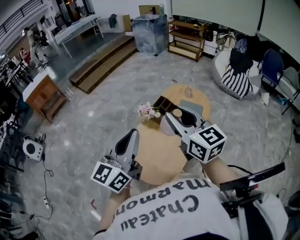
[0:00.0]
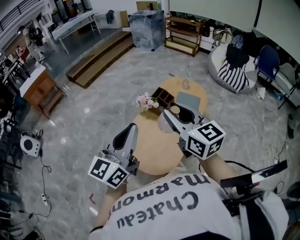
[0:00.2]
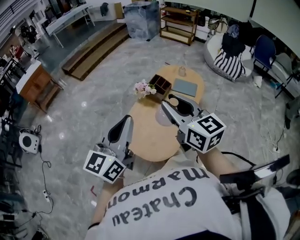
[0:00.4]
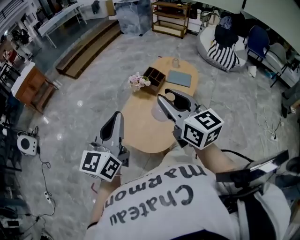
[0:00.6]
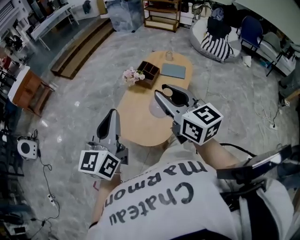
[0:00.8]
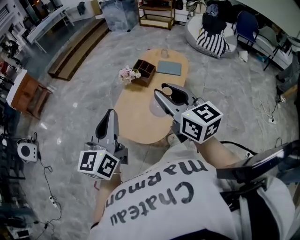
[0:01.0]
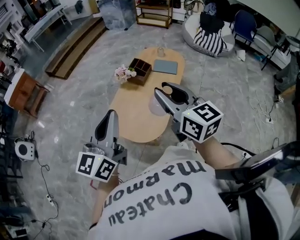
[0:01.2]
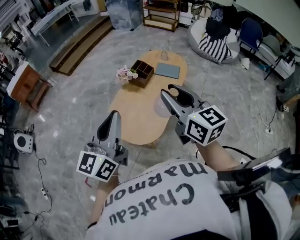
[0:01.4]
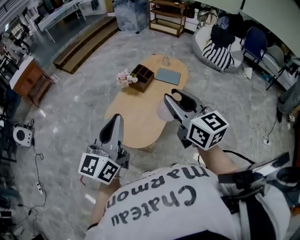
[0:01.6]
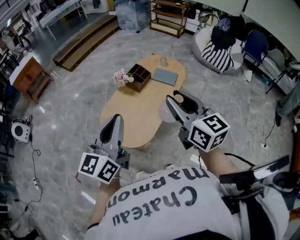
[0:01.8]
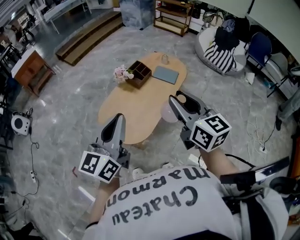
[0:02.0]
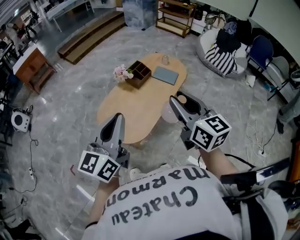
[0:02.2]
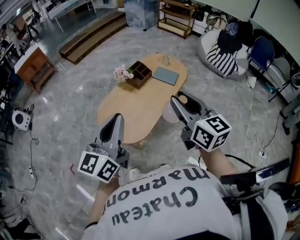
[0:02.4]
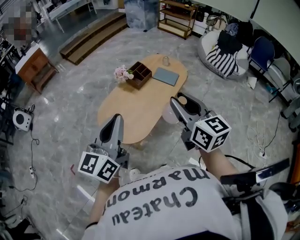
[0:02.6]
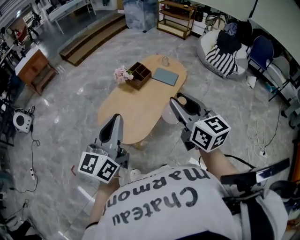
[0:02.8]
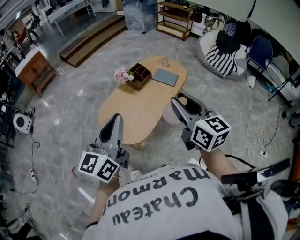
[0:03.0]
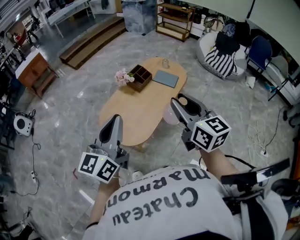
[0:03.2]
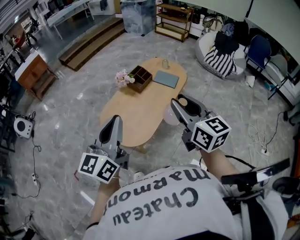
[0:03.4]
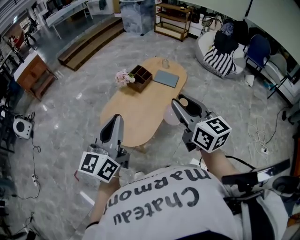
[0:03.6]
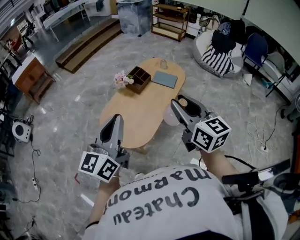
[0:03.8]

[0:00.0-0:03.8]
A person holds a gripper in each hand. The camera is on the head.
0:00.0 to 0:01.2: Both grippers move backward, approximately 15 cm.
0:01.2 to 0:02.6: The two grippers go some 15 cm to the right.
0:02.6 to 0:03.8: The grippers make only small movements.

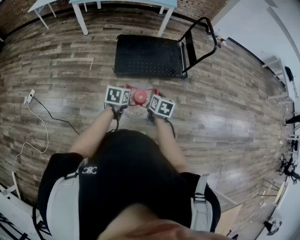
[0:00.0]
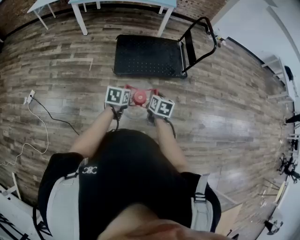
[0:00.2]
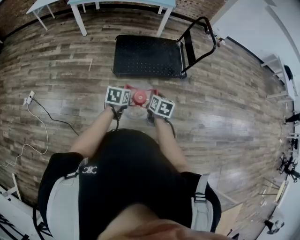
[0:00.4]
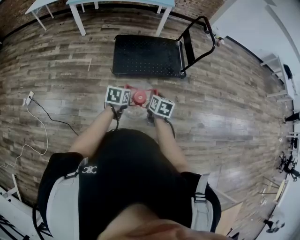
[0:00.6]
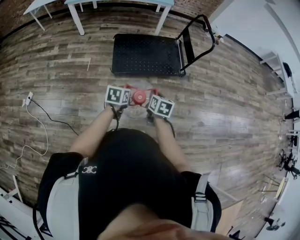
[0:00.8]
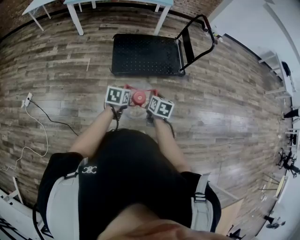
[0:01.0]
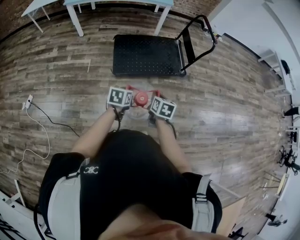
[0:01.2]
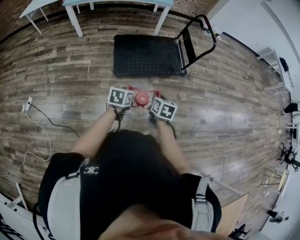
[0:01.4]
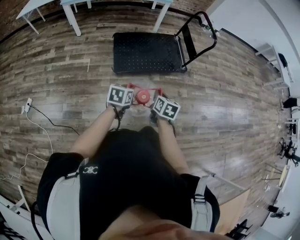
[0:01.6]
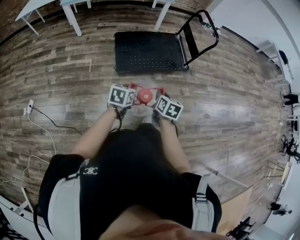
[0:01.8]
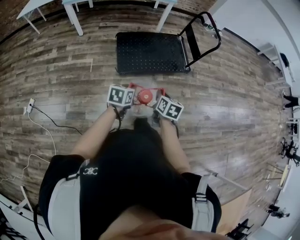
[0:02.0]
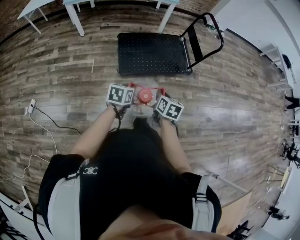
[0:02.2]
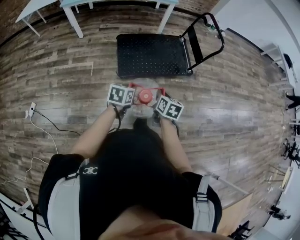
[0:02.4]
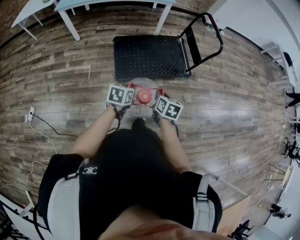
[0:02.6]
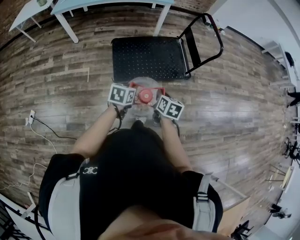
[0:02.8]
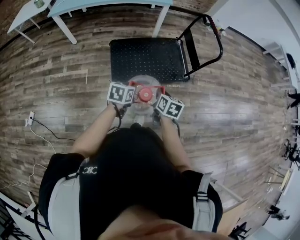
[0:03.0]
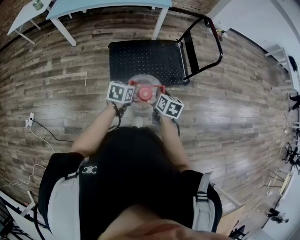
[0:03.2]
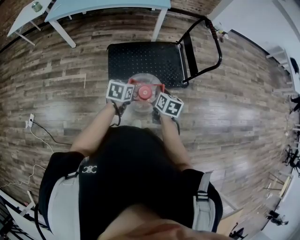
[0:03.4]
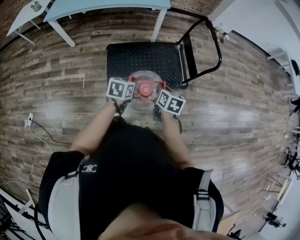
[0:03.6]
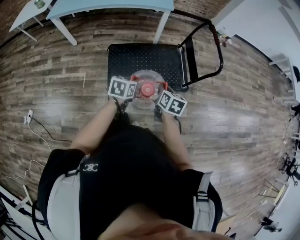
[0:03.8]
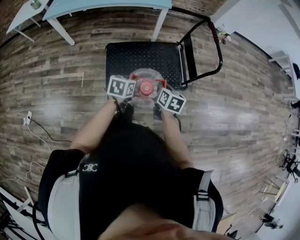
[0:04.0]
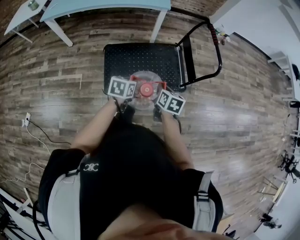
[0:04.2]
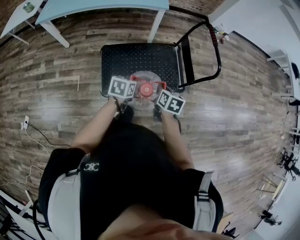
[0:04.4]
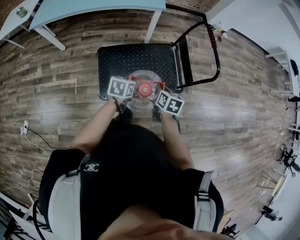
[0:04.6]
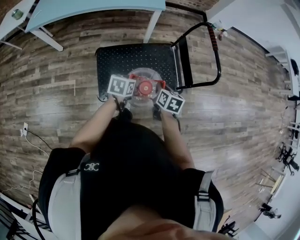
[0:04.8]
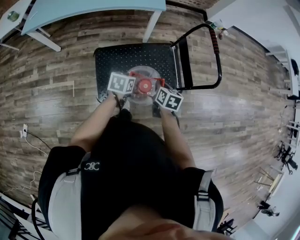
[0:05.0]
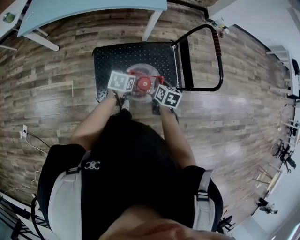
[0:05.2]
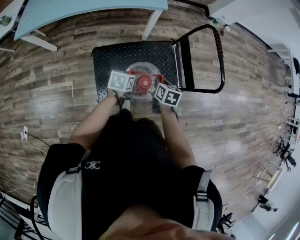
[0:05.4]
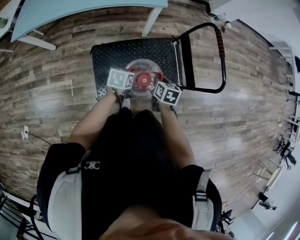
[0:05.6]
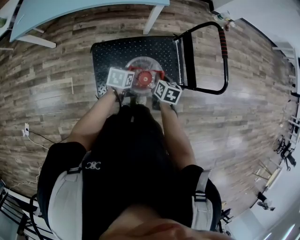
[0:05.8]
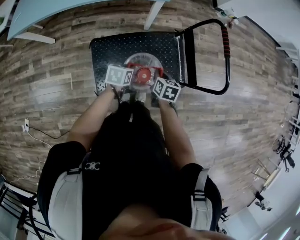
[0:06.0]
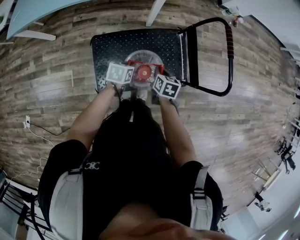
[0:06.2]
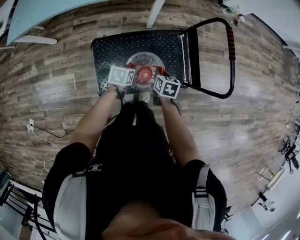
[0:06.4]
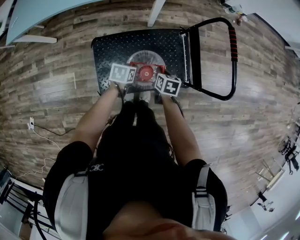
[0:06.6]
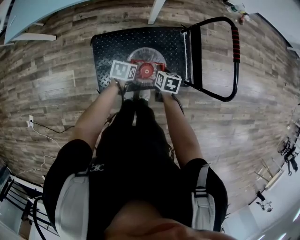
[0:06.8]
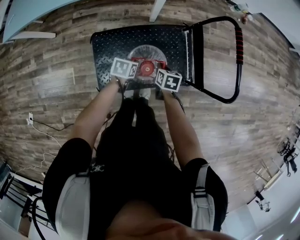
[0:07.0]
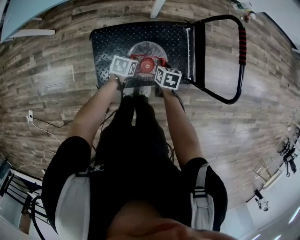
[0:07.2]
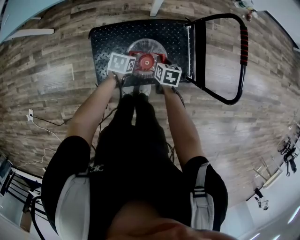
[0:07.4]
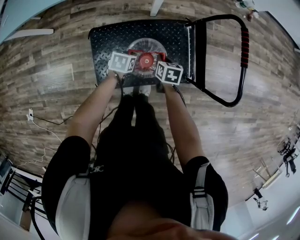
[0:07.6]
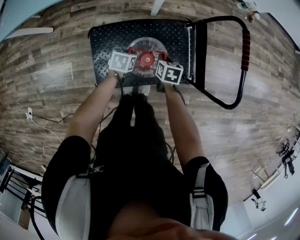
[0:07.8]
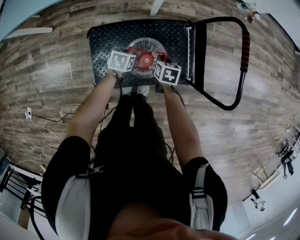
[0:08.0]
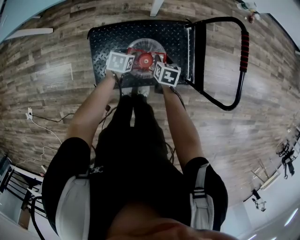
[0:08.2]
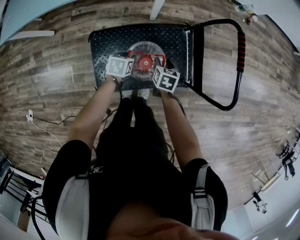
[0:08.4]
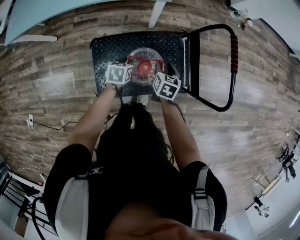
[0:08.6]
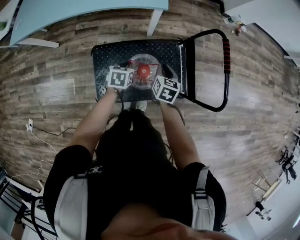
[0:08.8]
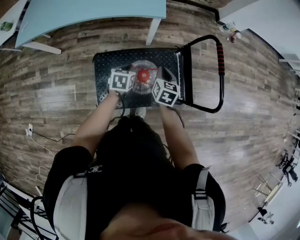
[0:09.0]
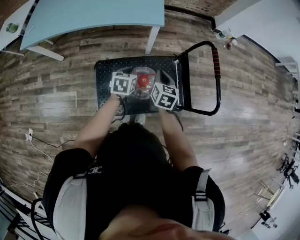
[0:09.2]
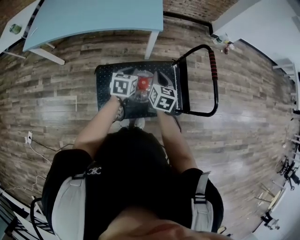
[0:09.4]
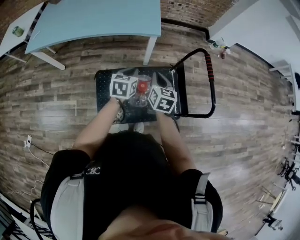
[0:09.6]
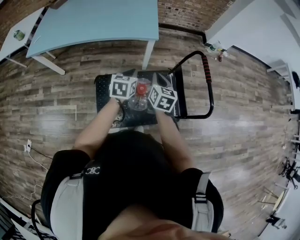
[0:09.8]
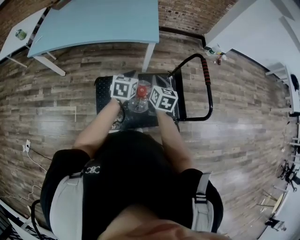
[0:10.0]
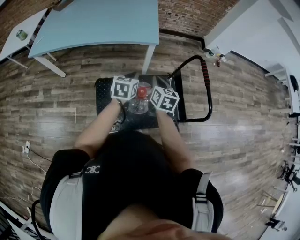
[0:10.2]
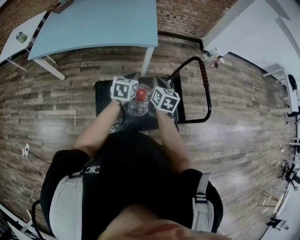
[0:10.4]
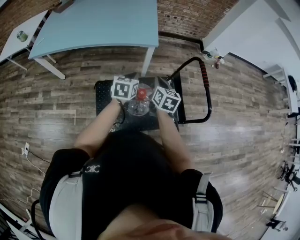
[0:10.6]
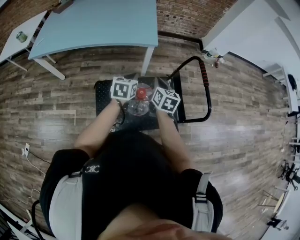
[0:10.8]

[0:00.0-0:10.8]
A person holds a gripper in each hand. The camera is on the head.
0:00.0 to 0:01.6: The grippers move only a little.
0:01.6 to 0:03.0: Both grippers move forward, approximately 20 cm.
0:03.0 to 0:04.6: The grippers both shift forward by some 20 cm.
0:04.6 to 0:06.2: The grippers both shift forward and downward by some 20 cm.
0:06.2 to 0:07.8: The grippers both shift downward and forward by about 10 cm.
0:07.8 to 0:09.2: Both grippers travel together upward, approximately 20 cm. The right gripper rotates about 30 degrees, and opens, then closes once more, while the left gripper rotates approximately 20 degrees, and opens, then closes once more.
0:09.2 to 0:10.8: Both grippers move upward, approximately 10 cm.

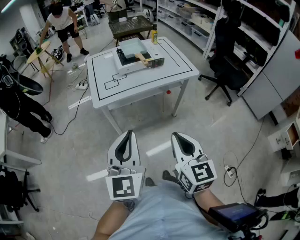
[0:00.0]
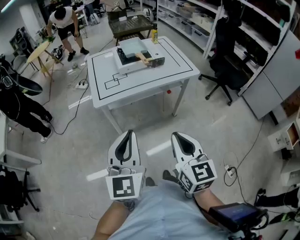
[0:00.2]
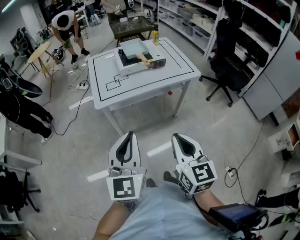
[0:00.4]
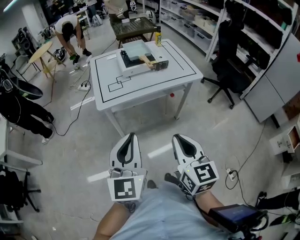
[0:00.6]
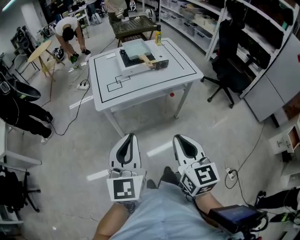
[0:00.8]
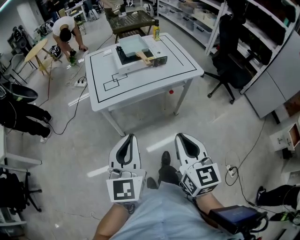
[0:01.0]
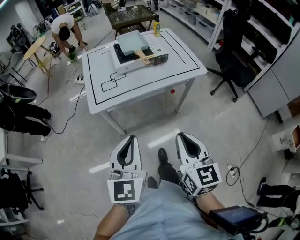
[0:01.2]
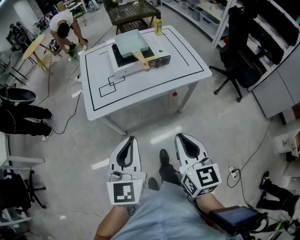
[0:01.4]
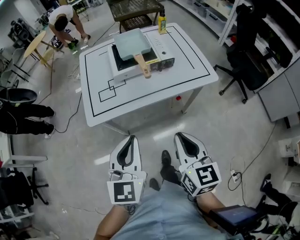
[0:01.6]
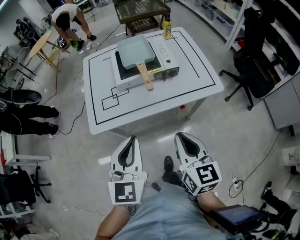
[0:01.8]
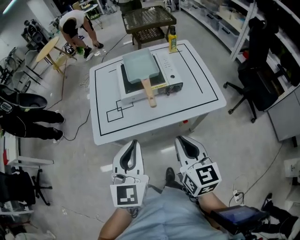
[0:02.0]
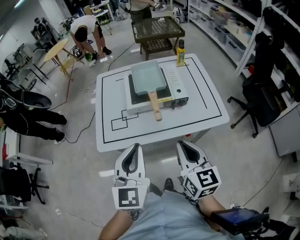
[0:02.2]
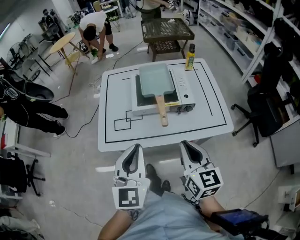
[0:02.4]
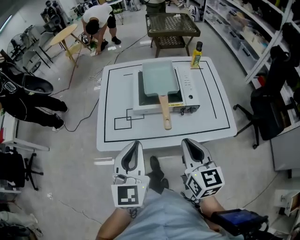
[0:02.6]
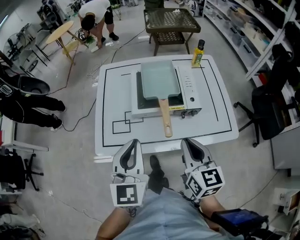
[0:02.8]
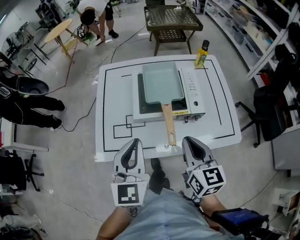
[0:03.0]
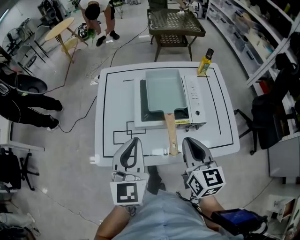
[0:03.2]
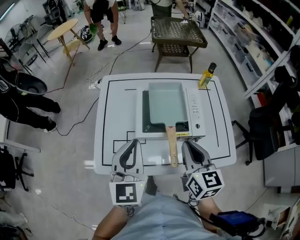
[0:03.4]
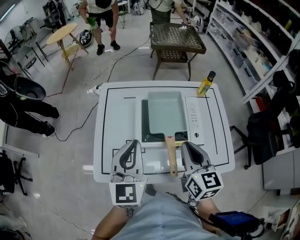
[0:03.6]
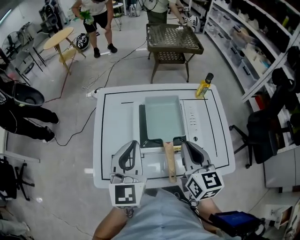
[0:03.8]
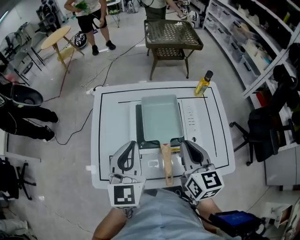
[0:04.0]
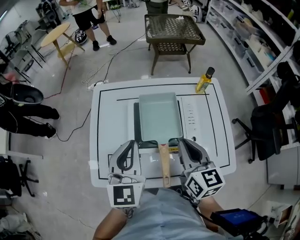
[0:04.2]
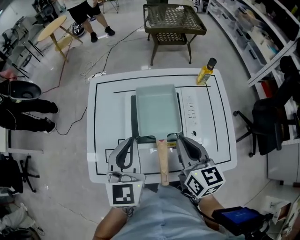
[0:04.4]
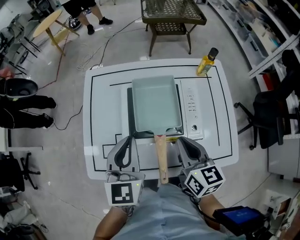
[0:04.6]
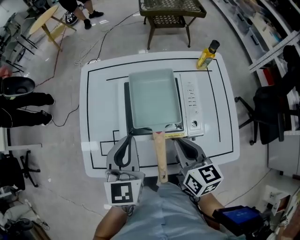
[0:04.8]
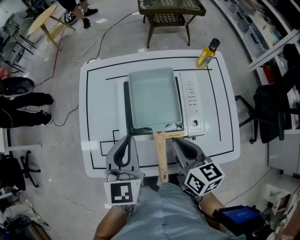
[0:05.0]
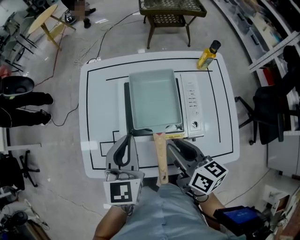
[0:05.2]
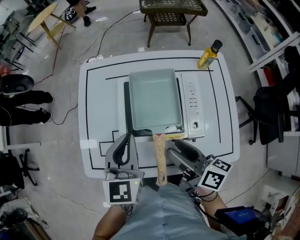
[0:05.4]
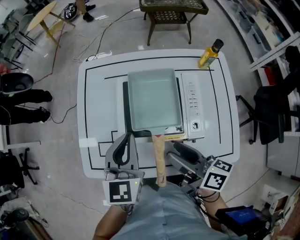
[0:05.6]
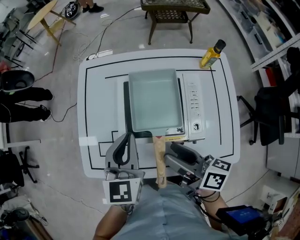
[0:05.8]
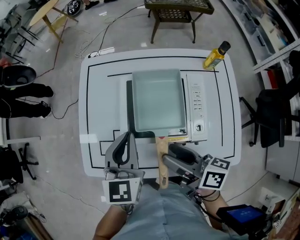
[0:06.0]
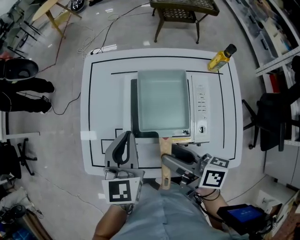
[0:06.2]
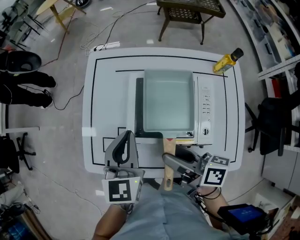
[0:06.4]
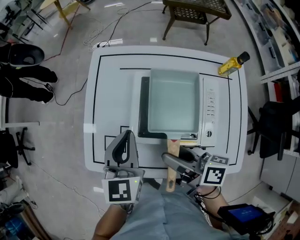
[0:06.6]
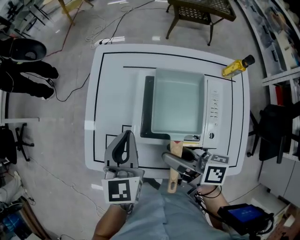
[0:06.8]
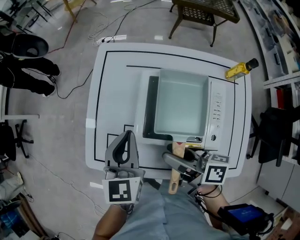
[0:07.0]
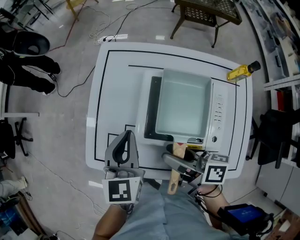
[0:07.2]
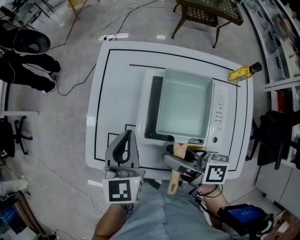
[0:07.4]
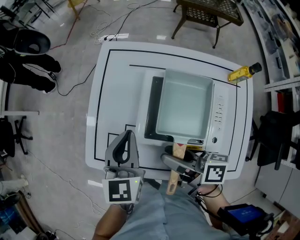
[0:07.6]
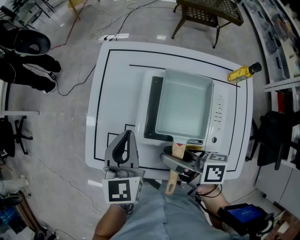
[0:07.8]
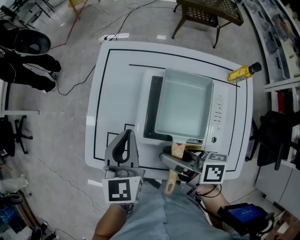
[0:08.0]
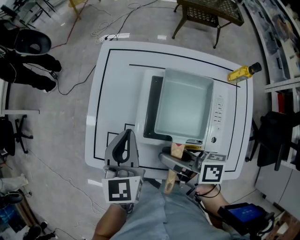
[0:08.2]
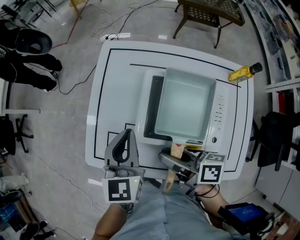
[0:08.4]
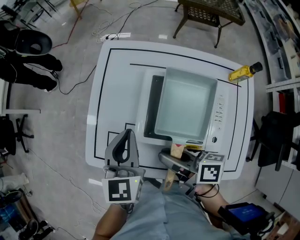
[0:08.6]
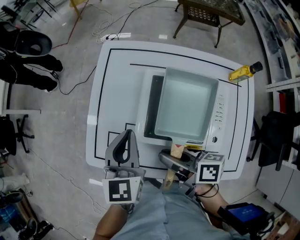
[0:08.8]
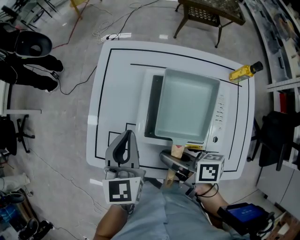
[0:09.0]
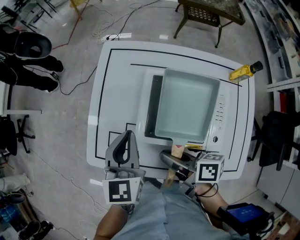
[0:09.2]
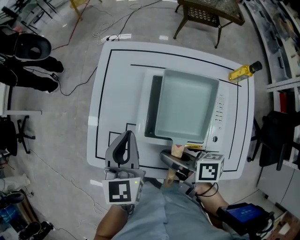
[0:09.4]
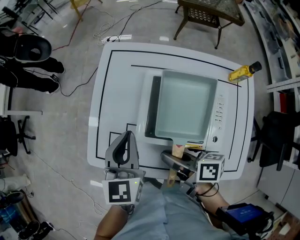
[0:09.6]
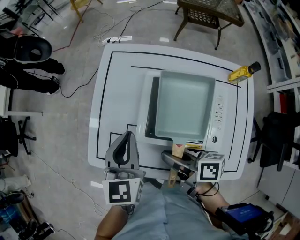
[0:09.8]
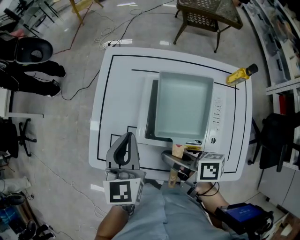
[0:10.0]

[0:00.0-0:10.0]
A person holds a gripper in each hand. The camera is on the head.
0:00.0 to 0:01.4: The two grippers go approximately 15 cm forward.
0:01.4 to 0:02.8: The two grippers go approximately 30 cm forward.
0:02.8 to 0:04.2: Both grippers travel together forward, roughly 20 cm.
0:04.2 to 0:05.8: Both grippers travel together downward, roughly 5 cm. The right gripper rotates about 50 degrees, and opens its fingers.
0:05.8 to 0:07.2: The left gripper travels to the left by some 5 cm. Meanwhile the right gripper is displaced to the left and forward by some 10 cm.
0:07.2 to 0:08.6: The right gripper closes.
0:08.6 to 0:10.0: The grippers make only small movements.
